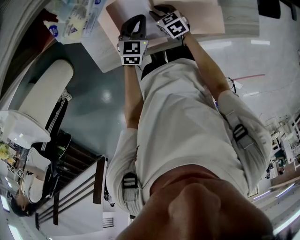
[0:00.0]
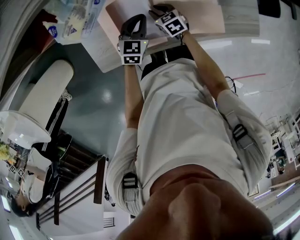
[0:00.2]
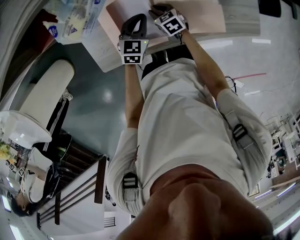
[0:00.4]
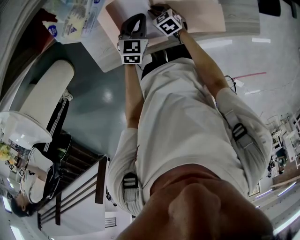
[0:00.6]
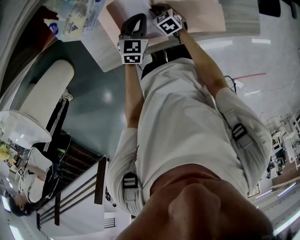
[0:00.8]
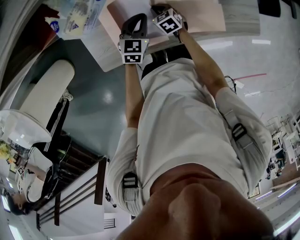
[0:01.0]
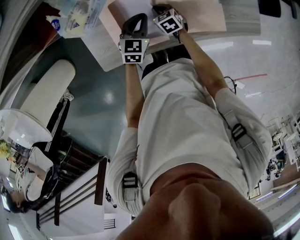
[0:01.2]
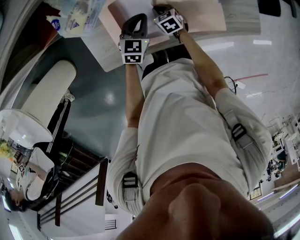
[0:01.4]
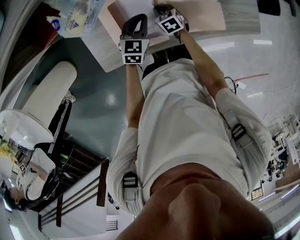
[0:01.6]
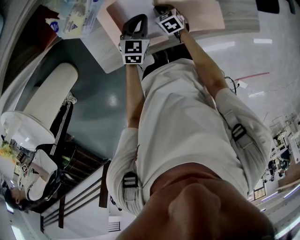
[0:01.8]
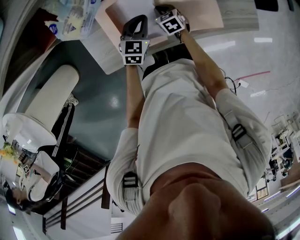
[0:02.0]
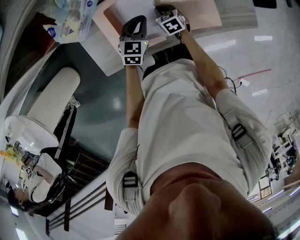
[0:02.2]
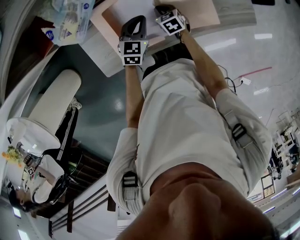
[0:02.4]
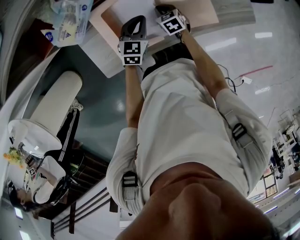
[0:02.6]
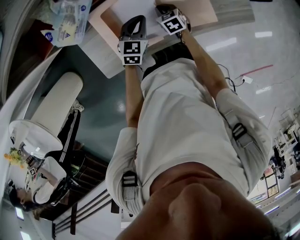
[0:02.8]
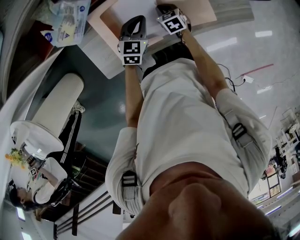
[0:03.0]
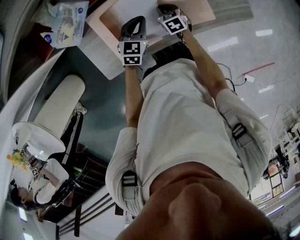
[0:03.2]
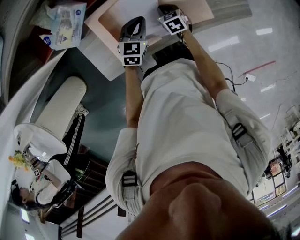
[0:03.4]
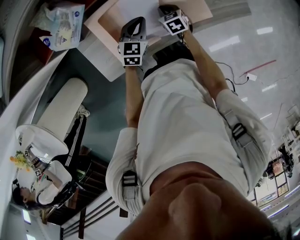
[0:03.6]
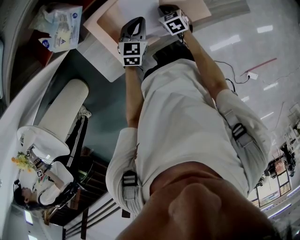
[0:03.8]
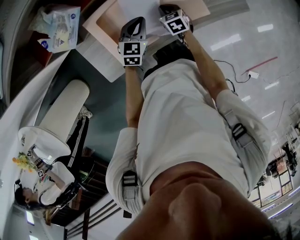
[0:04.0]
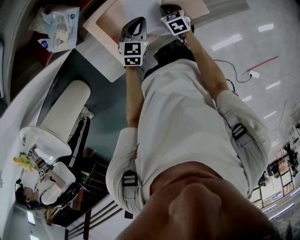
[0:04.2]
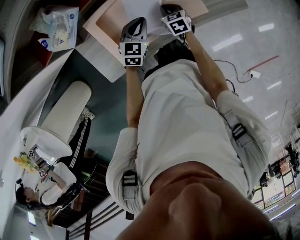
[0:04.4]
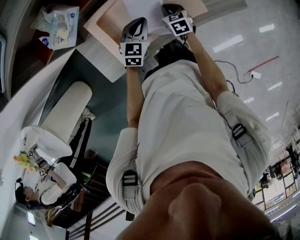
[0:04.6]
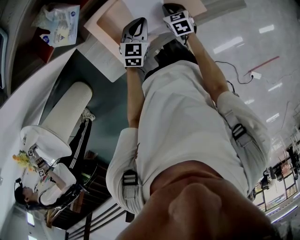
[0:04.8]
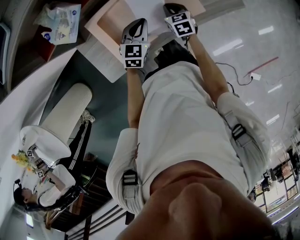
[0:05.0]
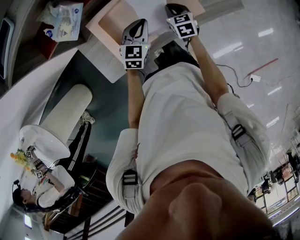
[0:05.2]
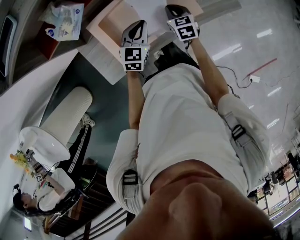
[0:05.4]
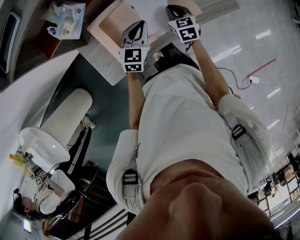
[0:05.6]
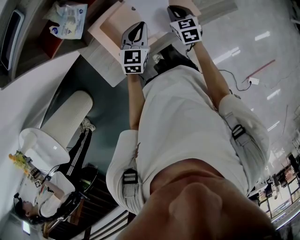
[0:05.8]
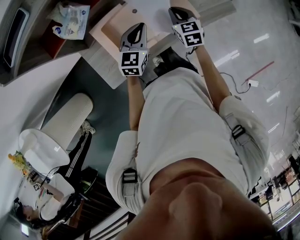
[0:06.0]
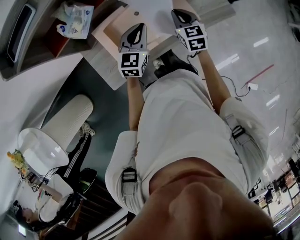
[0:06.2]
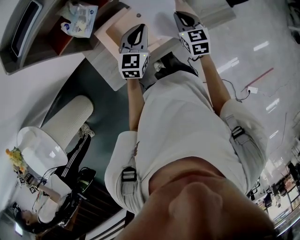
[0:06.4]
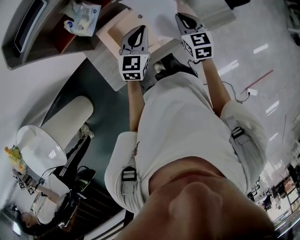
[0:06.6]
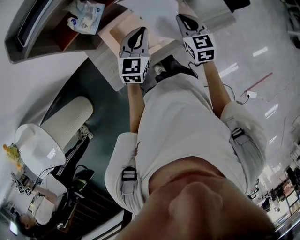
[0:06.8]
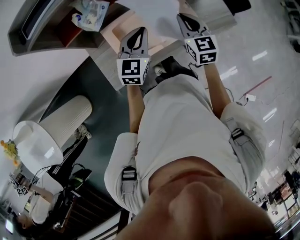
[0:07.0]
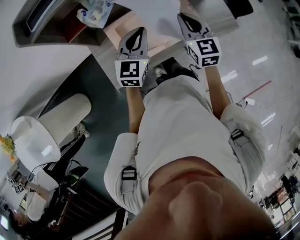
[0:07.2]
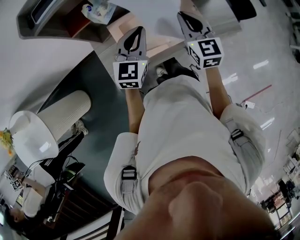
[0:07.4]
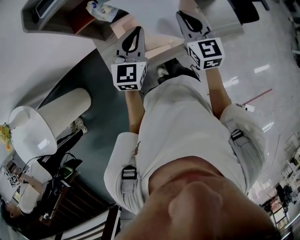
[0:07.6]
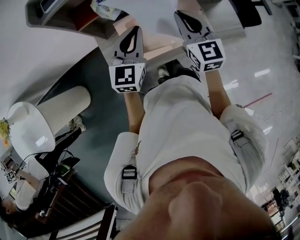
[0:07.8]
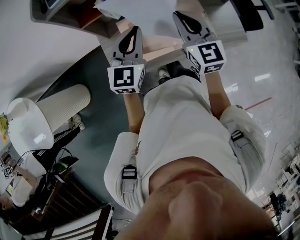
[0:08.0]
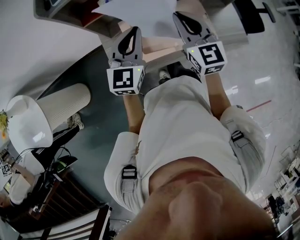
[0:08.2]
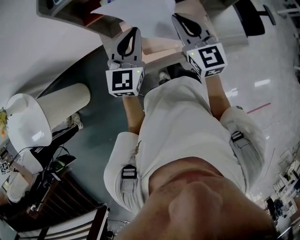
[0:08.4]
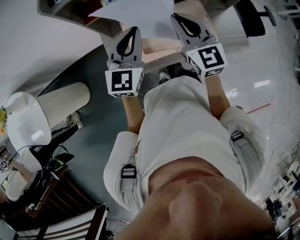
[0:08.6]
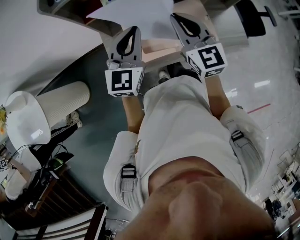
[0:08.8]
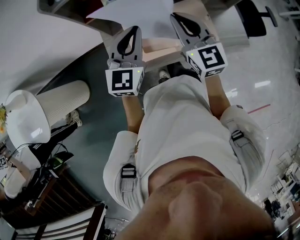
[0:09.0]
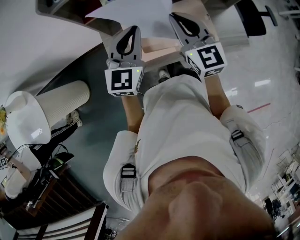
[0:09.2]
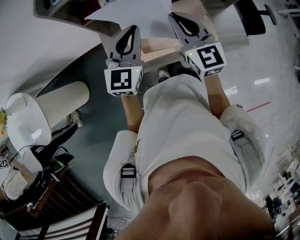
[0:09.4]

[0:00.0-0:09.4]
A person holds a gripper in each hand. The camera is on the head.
0:00.0 to 0:01.6: The right gripper closes its fingers.
0:01.6 to 0:03.2: The right gripper travels to the right by approximately 10 cm; the left gripper ends up roughly 5 cm from where it was.
0:03.2 to 0:04.8: The right gripper moves upward and to the right, some 10 cm. The left gripper ends up about 5 cm from where it was.
0:04.8 to 0:06.2: The grippers both shift upward by some 15 cm.
0:06.2 to 0:07.8: The left gripper is displaced upward, to the left and backward by approximately 15 cm. The right gripper moves upward and to the left, roughly 20 cm, and rotates roughly 30 degrees.
0:07.8 to 0:09.4: The grippers stay close to where they were, moving slightly.

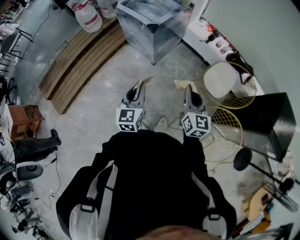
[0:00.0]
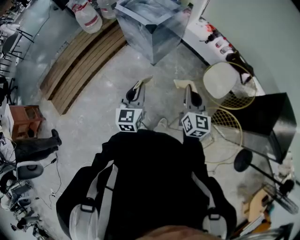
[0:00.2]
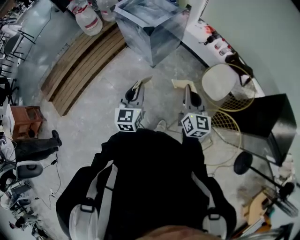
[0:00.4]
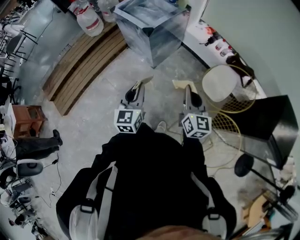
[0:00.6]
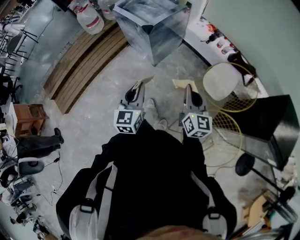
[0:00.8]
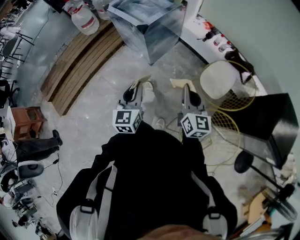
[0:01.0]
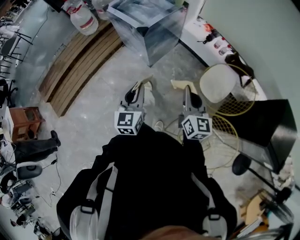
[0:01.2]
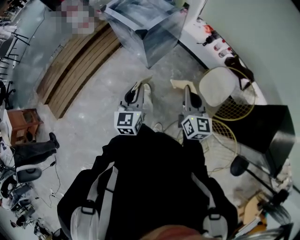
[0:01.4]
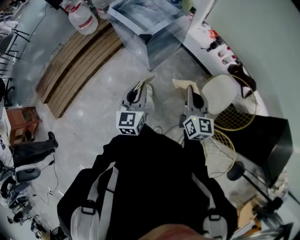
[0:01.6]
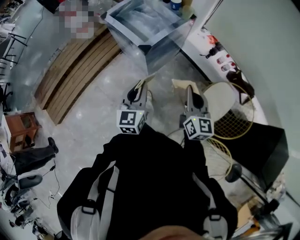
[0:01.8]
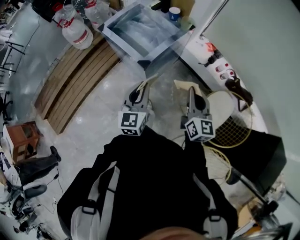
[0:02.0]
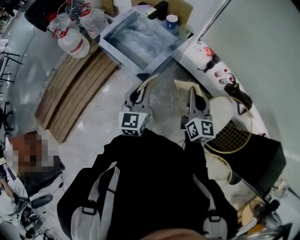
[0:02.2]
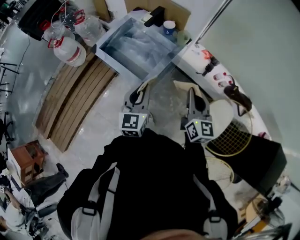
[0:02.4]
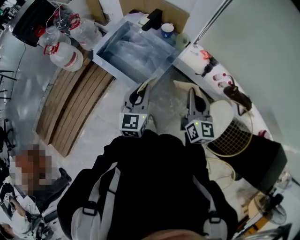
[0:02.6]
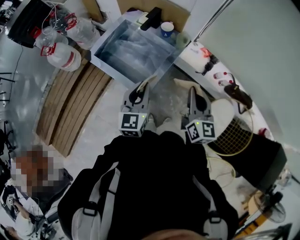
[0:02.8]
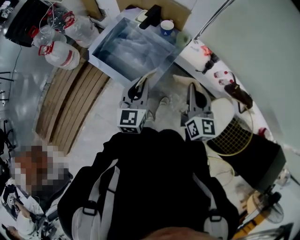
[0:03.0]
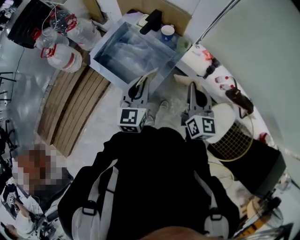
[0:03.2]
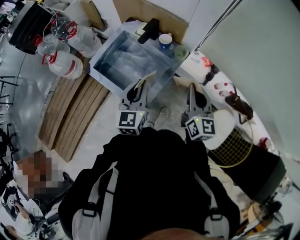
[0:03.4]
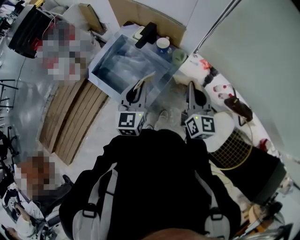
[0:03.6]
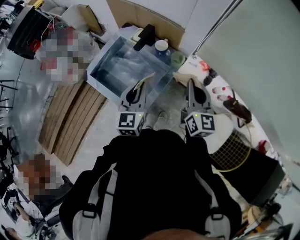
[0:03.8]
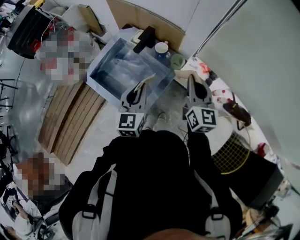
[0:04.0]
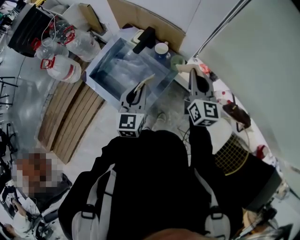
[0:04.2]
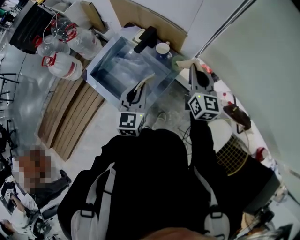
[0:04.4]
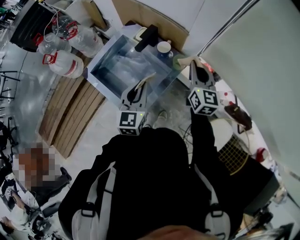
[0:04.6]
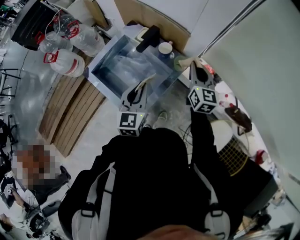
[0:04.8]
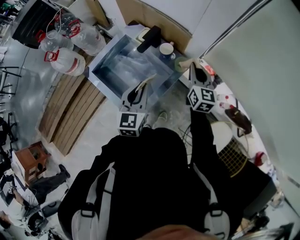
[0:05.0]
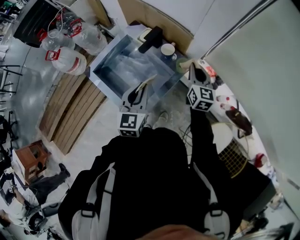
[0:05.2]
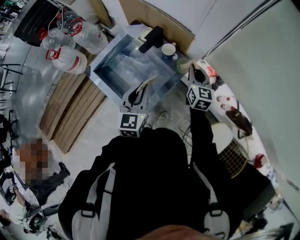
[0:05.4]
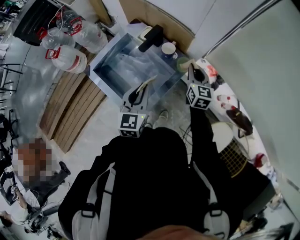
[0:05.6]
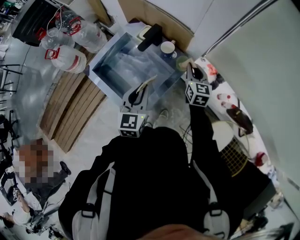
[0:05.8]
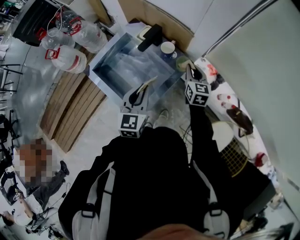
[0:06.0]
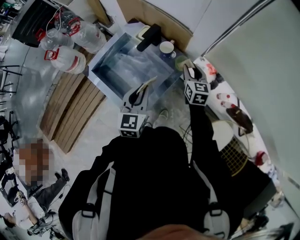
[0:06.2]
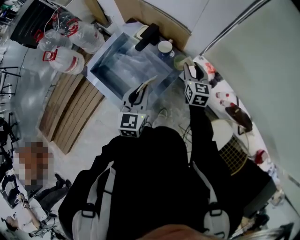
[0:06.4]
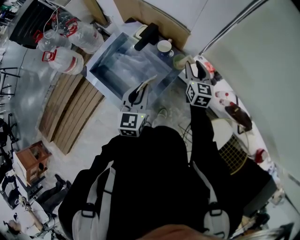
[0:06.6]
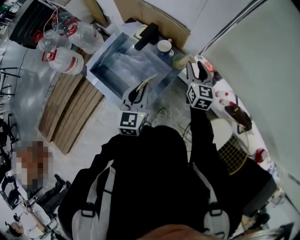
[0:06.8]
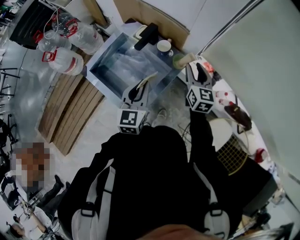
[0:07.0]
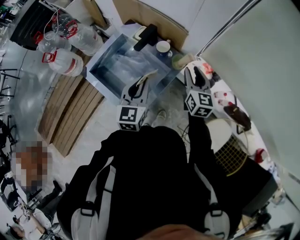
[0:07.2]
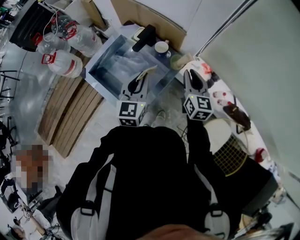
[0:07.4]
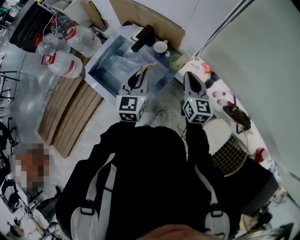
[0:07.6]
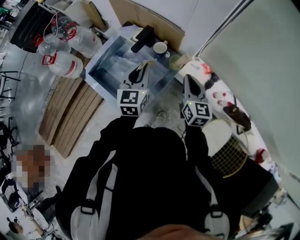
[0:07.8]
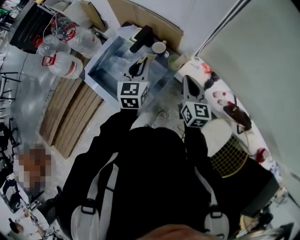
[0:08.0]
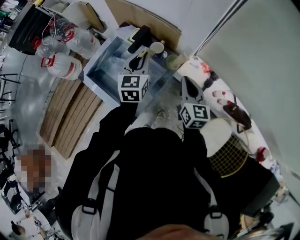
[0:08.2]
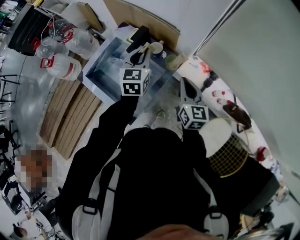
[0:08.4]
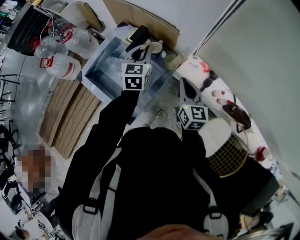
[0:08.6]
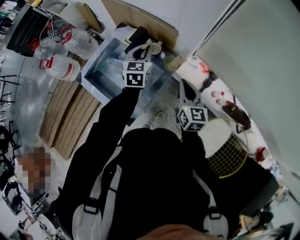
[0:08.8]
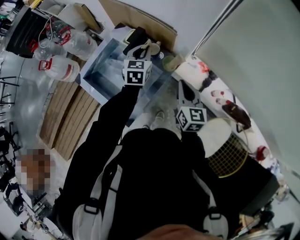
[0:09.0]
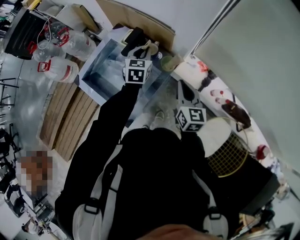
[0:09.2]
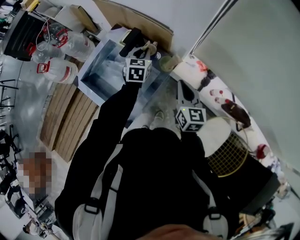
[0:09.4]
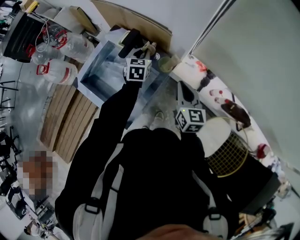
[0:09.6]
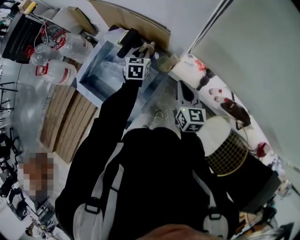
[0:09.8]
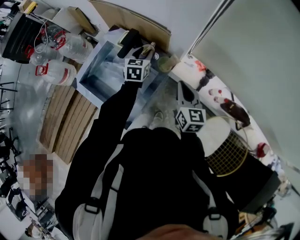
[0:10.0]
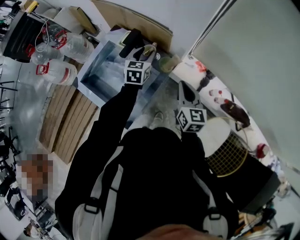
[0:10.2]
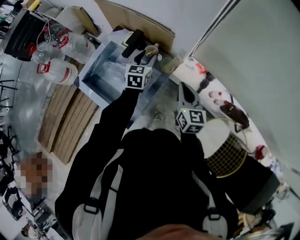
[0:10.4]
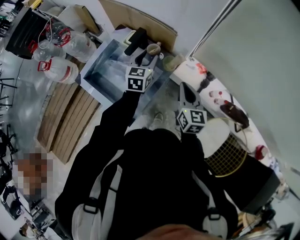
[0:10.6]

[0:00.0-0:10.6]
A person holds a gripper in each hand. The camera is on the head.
0:00.0 to 0:01.6: The grippers both shift forward by roughly 15 cm.
0:01.6 to 0:03.0: Both grippers move forward, about 40 cm.
0:03.0 to 0:04.6: The left gripper heads forward, covering roughly 10 cm. The right gripper heads forward, covering about 25 cm.
0:04.6 to 0:06.0: The right gripper is displaced downward by roughly 15 cm.
0:06.0 to 0:07.6: The left gripper heads forward, covering about 5 cm, while the right gripper heads upward and backward, covering approximately 10 cm, and opens, then closes once more.
0:07.6 to 0:09.0: The left gripper shifts roughly 15 cm forward and downward.
0:09.0 to 0:10.6: The left gripper opens its fingers.

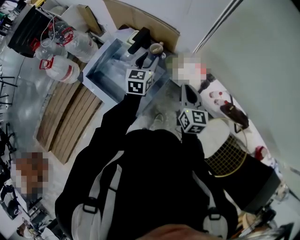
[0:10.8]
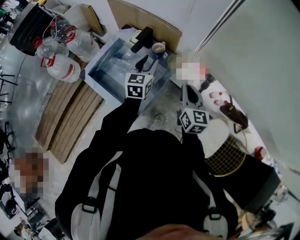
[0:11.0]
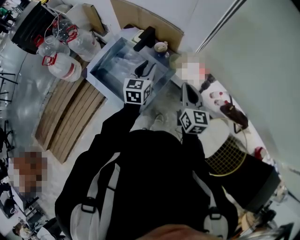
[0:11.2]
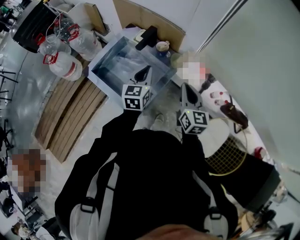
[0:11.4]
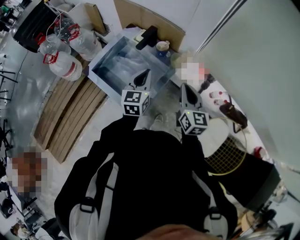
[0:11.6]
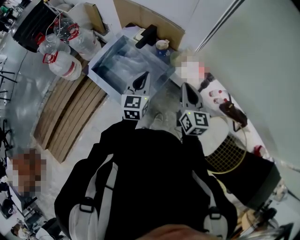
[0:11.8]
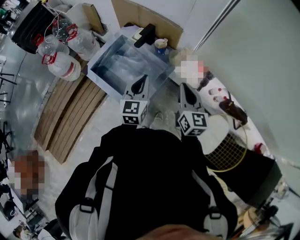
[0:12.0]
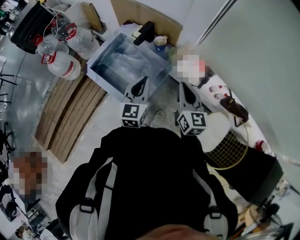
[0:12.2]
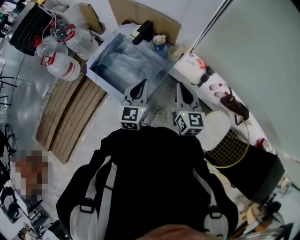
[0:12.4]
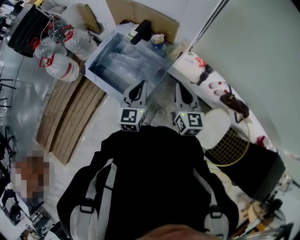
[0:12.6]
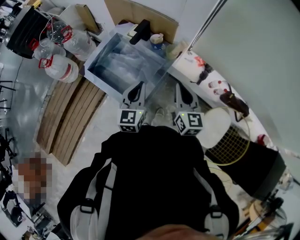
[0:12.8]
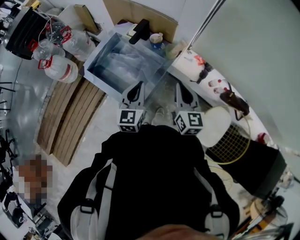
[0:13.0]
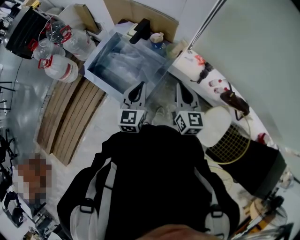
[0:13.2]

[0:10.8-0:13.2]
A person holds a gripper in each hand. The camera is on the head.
0:10.8 to 0:12.0: The right gripper goes roughly 5 cm backward. The left gripper moves backward, roughly 15 cm, and closes.
0:12.0 to 0:13.2: The grippers move only a little.

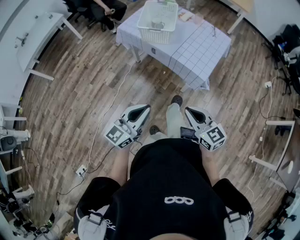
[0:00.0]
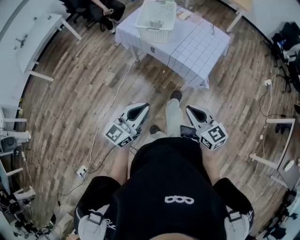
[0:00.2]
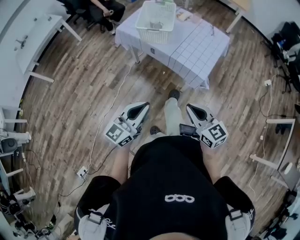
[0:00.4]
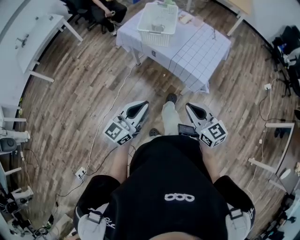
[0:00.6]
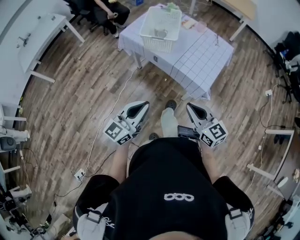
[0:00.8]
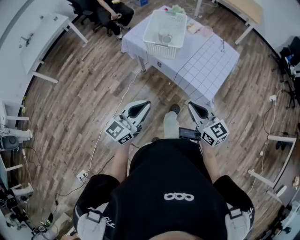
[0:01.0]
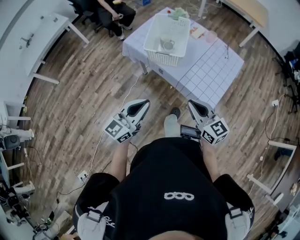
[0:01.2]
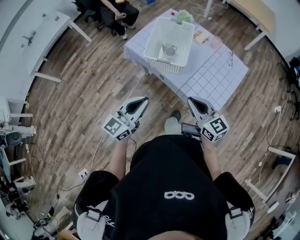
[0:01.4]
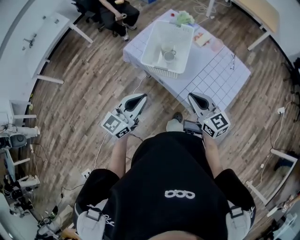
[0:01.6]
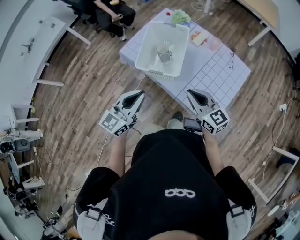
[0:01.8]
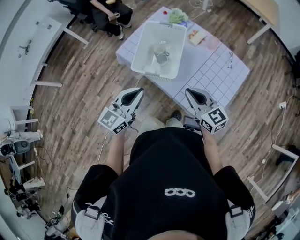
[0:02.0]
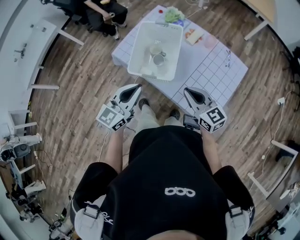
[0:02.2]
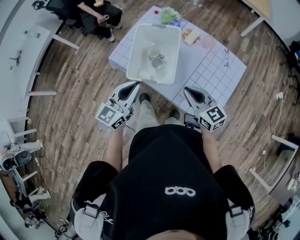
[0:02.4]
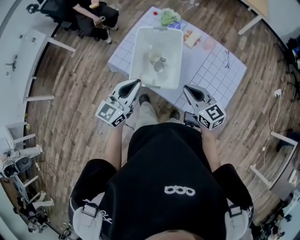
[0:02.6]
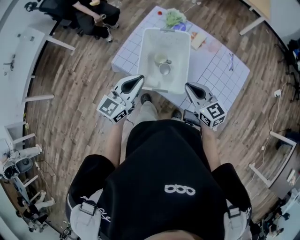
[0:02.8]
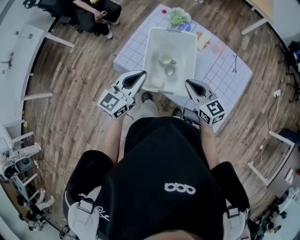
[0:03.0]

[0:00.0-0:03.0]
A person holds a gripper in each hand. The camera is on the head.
0:00.0 to 0:01.6: The two grippers go roughly 35 cm forward.
0:01.6 to 0:03.0: The grippers both shift forward by approximately 25 cm.
